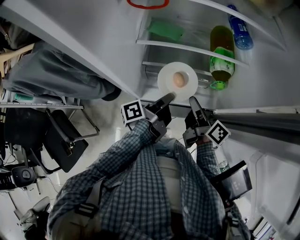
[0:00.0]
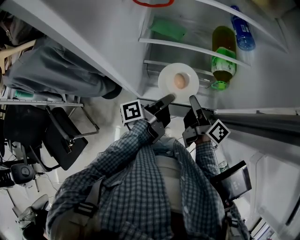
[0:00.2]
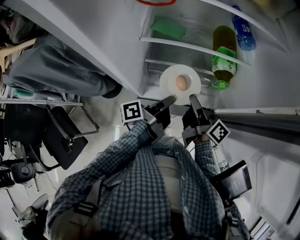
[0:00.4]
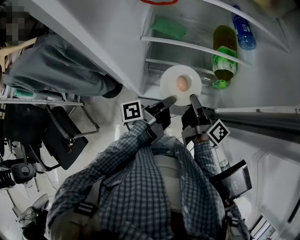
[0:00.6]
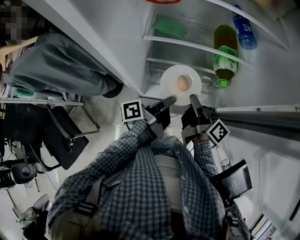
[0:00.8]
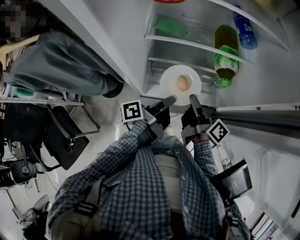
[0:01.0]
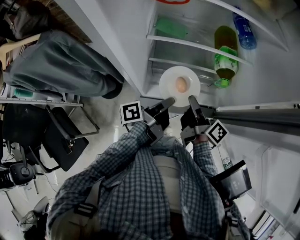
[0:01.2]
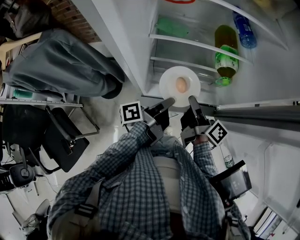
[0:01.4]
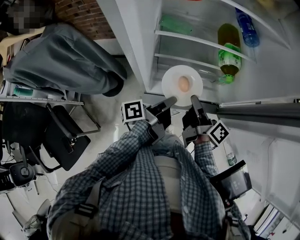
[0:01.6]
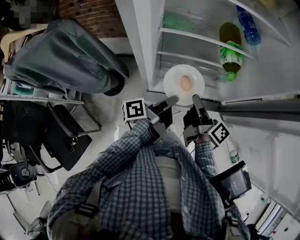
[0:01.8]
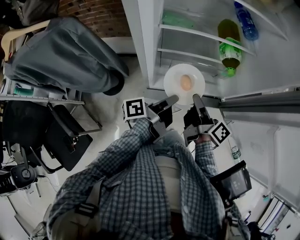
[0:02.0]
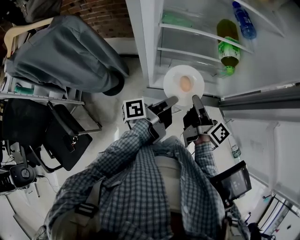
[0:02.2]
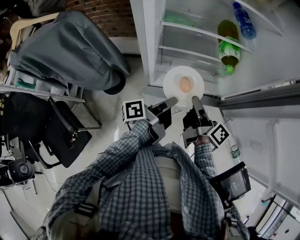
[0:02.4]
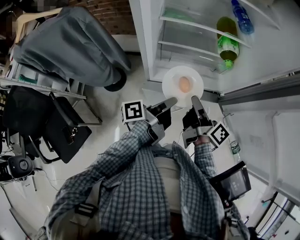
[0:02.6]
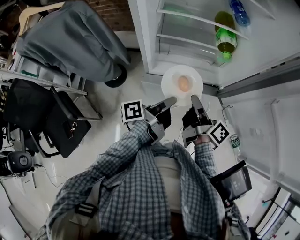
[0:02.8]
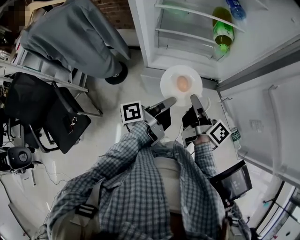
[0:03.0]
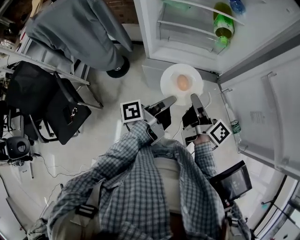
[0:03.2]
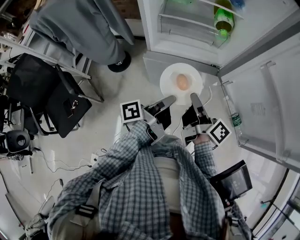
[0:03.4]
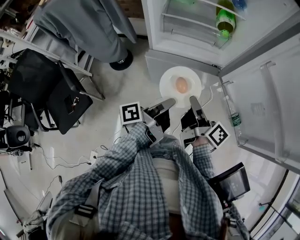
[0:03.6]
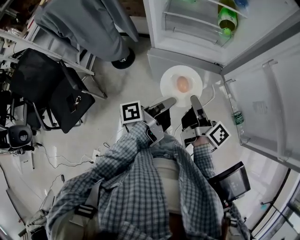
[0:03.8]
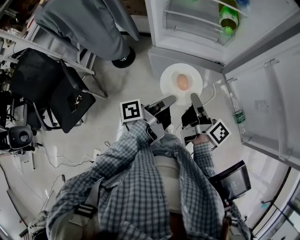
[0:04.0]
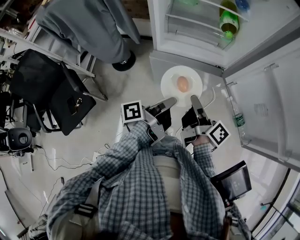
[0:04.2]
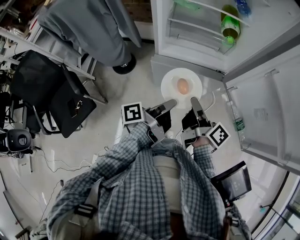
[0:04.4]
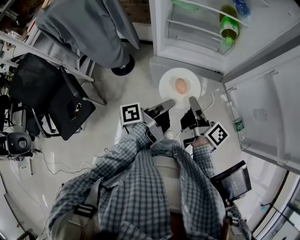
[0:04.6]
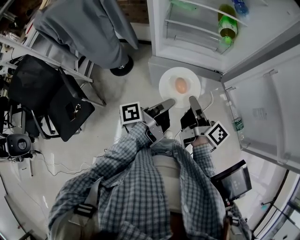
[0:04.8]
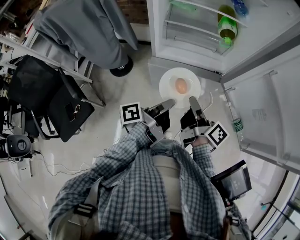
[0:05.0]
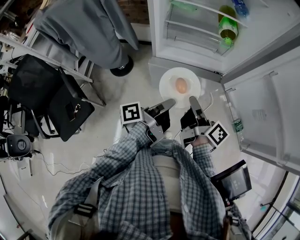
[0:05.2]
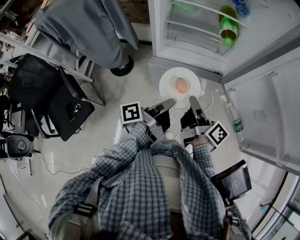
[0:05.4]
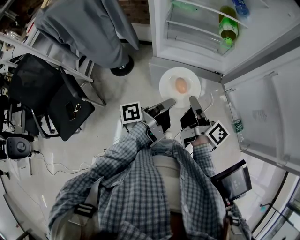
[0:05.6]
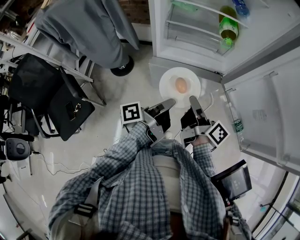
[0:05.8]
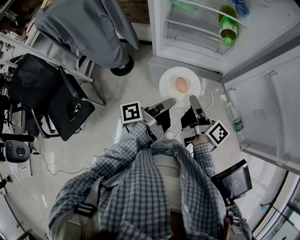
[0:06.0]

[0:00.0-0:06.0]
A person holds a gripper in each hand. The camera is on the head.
0:00.0 to 0:01.6: The right gripper moves some 5 cm.
0:01.6 to 0:03.0: The right gripper ends up roughly 15 cm from where it was.
0:03.0 to 0:04.4: The right gripper ends up approximately 10 cm from where it was.

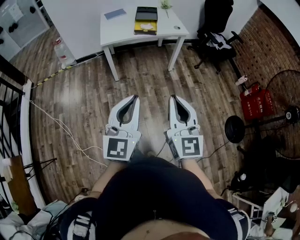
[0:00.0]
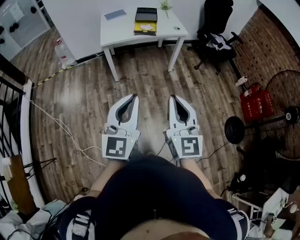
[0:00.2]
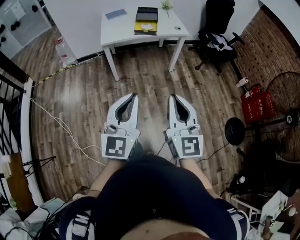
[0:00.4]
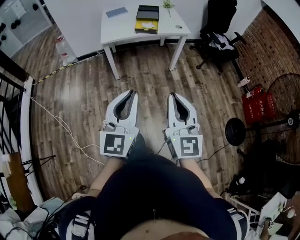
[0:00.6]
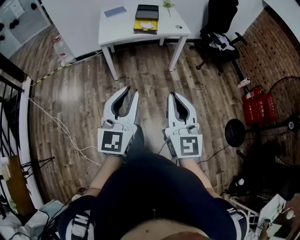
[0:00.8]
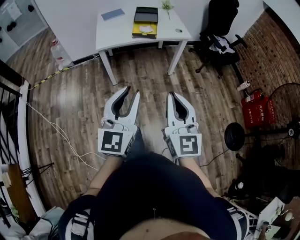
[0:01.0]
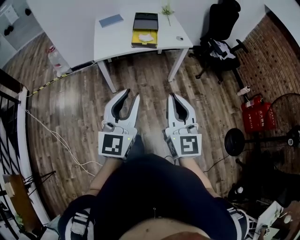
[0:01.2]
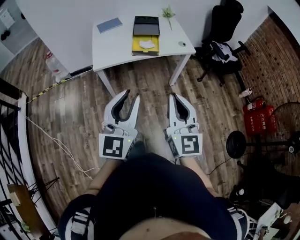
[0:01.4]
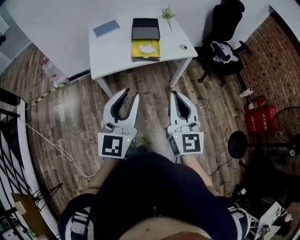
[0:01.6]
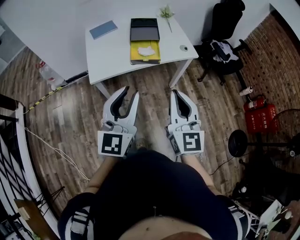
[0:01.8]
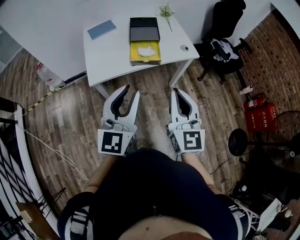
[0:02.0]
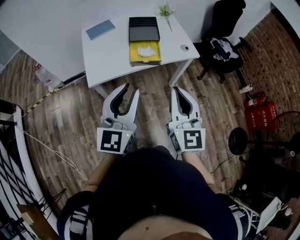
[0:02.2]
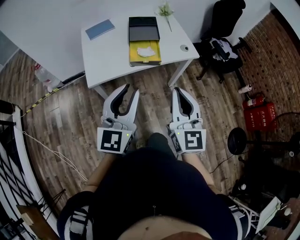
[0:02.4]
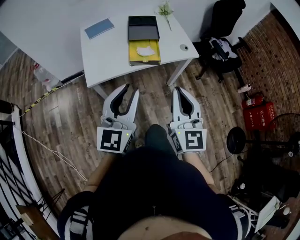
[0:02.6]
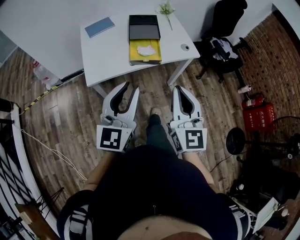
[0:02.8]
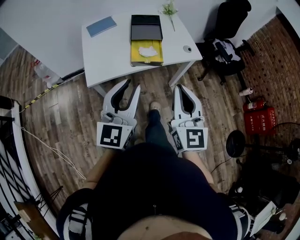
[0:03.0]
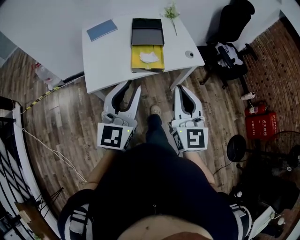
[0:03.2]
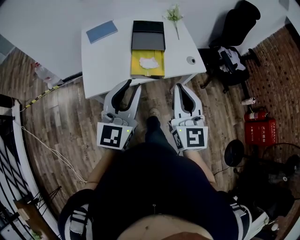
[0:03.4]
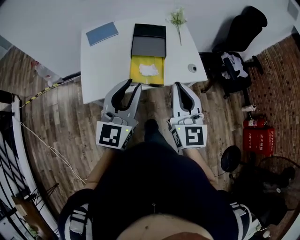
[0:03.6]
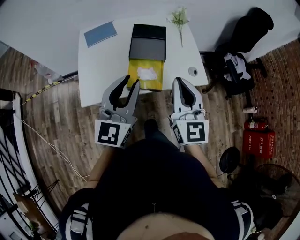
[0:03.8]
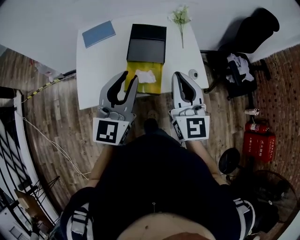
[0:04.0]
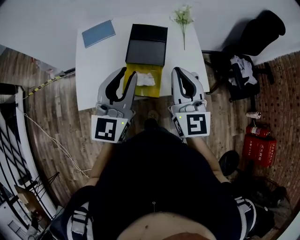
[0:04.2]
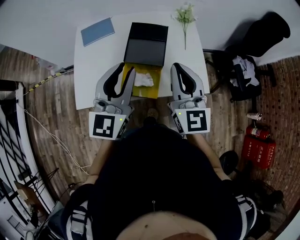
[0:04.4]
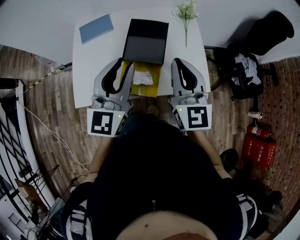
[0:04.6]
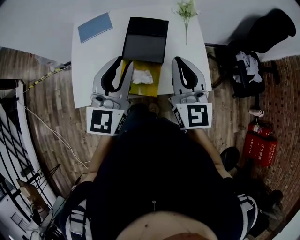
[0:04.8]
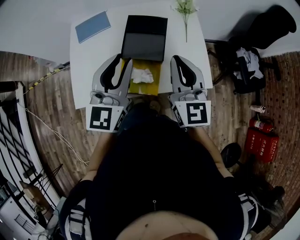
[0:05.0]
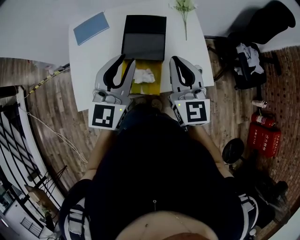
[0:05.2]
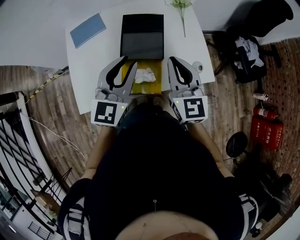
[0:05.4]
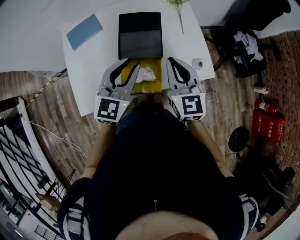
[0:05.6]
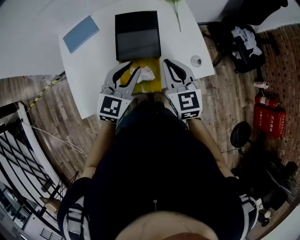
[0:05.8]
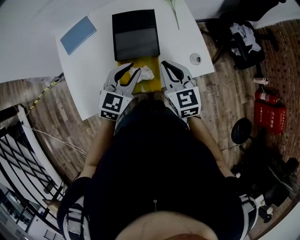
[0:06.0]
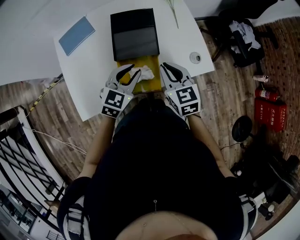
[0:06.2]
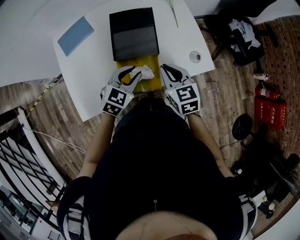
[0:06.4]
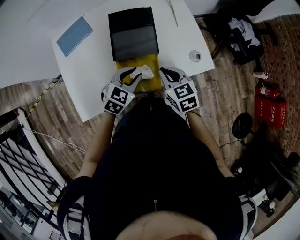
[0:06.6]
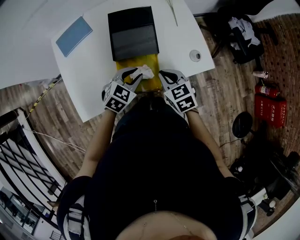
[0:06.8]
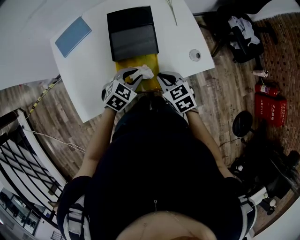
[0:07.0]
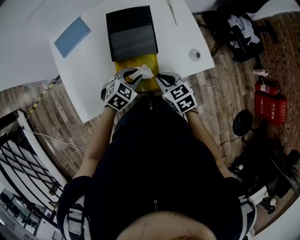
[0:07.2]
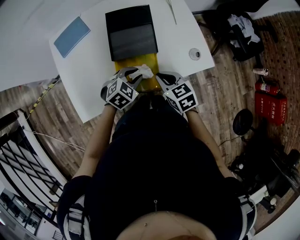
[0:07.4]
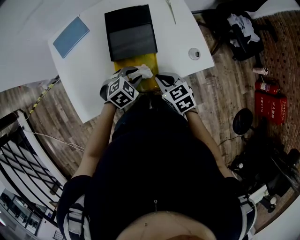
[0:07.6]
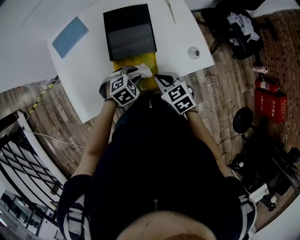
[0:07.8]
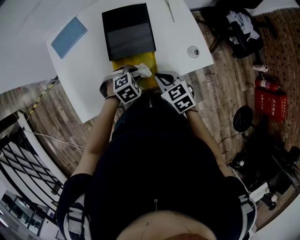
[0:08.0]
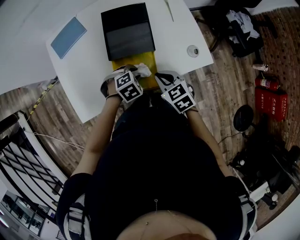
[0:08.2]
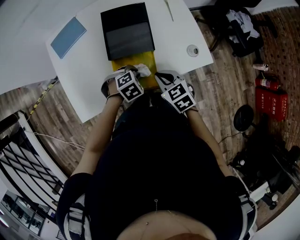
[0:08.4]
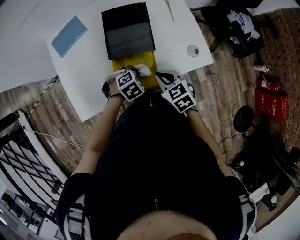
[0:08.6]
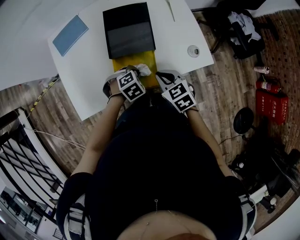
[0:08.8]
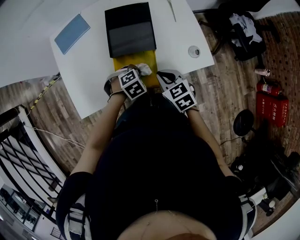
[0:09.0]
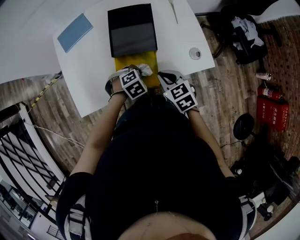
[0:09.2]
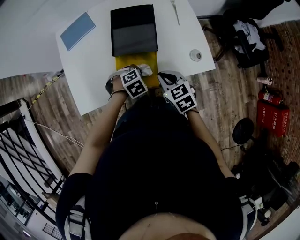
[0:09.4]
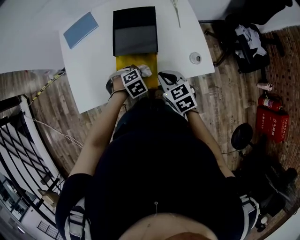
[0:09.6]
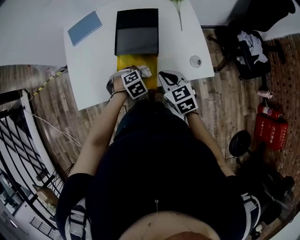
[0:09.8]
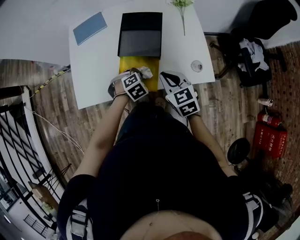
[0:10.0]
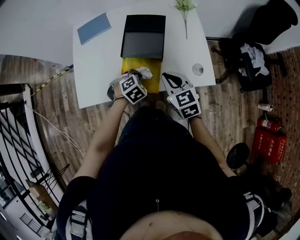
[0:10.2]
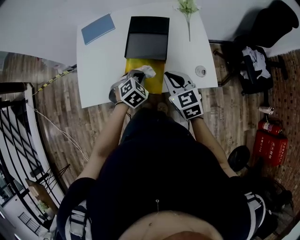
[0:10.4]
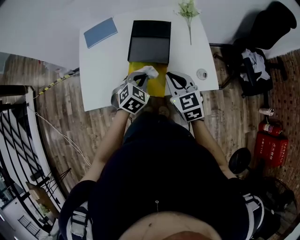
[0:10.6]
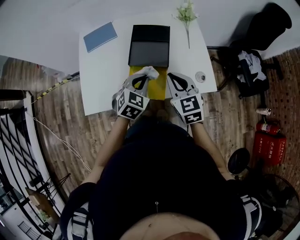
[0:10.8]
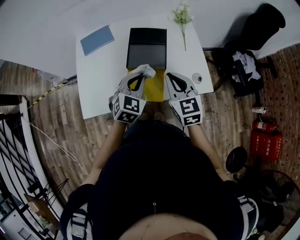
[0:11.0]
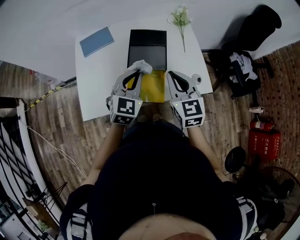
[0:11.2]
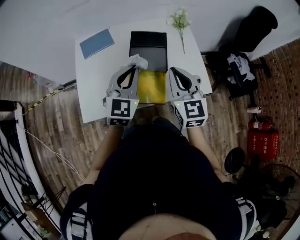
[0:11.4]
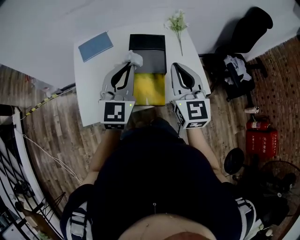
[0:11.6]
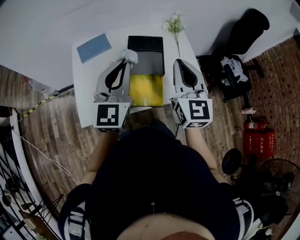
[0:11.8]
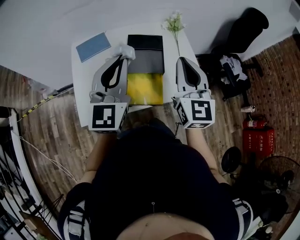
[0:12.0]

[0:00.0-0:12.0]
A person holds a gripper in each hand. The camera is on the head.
0:00.0 to 0:01.6: Both grippers move forward, approximately 35 cm. The left gripper opens its fingers.
0:01.6 to 0:03.0: Both grippers move forward, approximately 10 cm.
0:03.0 to 0:04.4: The two grippers go approximately 30 cm forward.
0:04.4 to 0:06.0: The two grippers go some 15 cm downward. The left gripper rotates roughly 40 degrees. The right gripper rotates some 20 degrees.
0:06.0 to 0:07.6: The grippers both shift downward by about 15 cm. The left gripper angles its fingers downward, by some 30 degrees. Meanwhile the right gripper rotates approximately 20 degrees.
0:07.6 to 0:09.0: The left gripper closes up.
0:09.0 to 0:10.4: Both grippers move upward, about 5 cm. The left gripper turns by about 30 degrees.
0:10.4 to 0:12.0: The left gripper moves upward, roughly 35 cm, and tilts its fingers some 60 degrees upward; the right gripper travels upward by roughly 20 cm, and changes its angle by some 40 degrees.

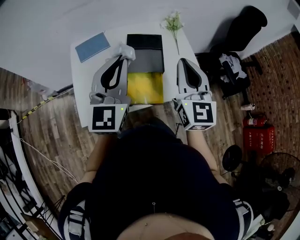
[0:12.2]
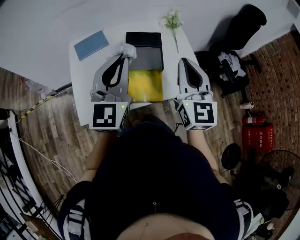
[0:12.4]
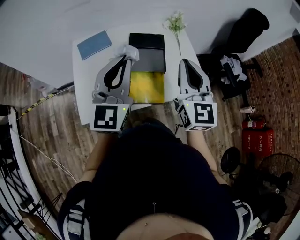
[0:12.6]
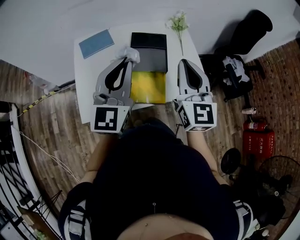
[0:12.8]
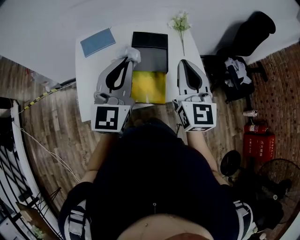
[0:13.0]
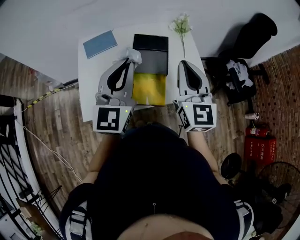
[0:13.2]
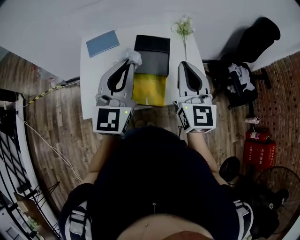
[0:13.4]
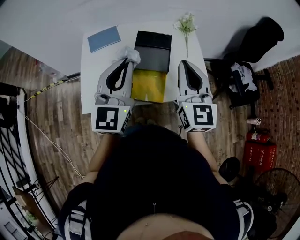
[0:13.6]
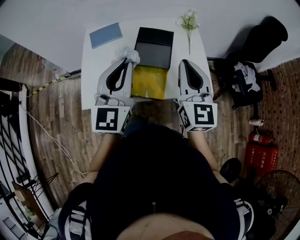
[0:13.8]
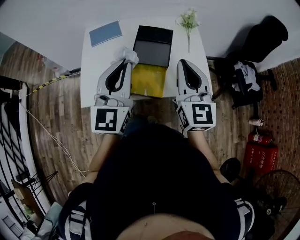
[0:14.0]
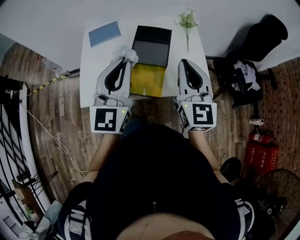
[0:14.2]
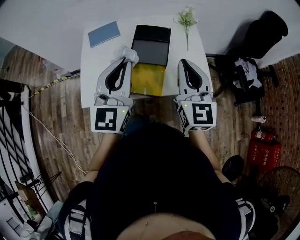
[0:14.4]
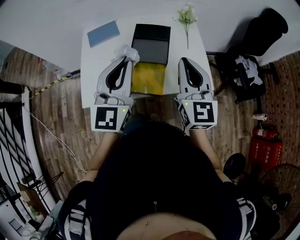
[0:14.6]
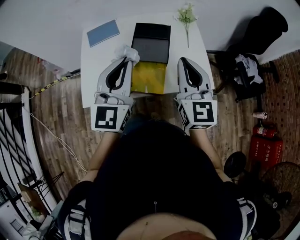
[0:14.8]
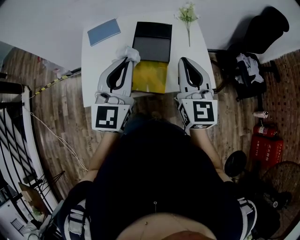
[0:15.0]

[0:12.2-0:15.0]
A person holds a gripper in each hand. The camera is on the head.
0:12.2 to 0:13.6: The grippers move only a little.
0:13.6 to 0:15.0: The grippers stay close to where they were, moving slightly.

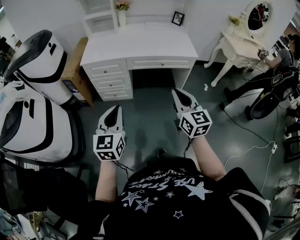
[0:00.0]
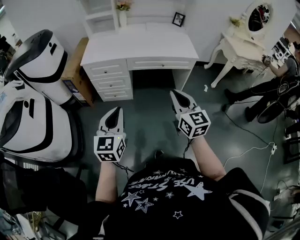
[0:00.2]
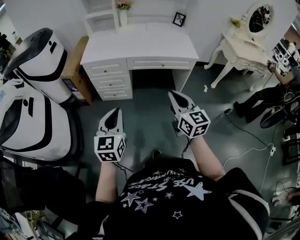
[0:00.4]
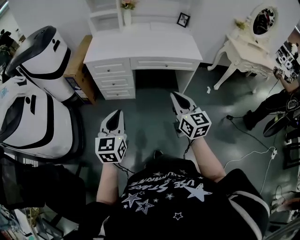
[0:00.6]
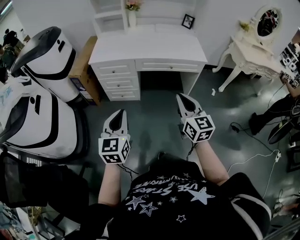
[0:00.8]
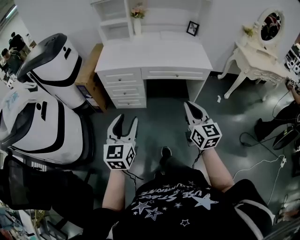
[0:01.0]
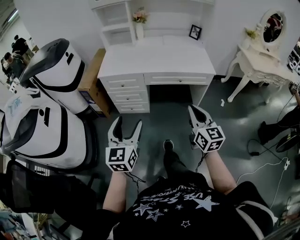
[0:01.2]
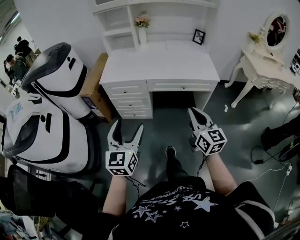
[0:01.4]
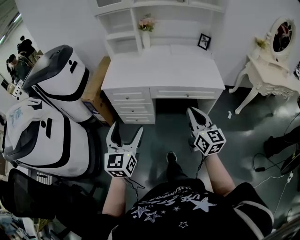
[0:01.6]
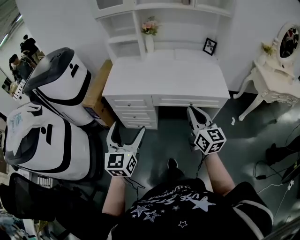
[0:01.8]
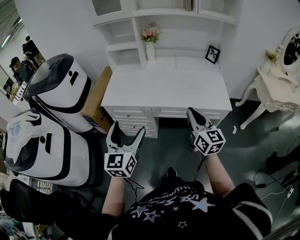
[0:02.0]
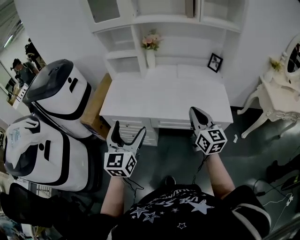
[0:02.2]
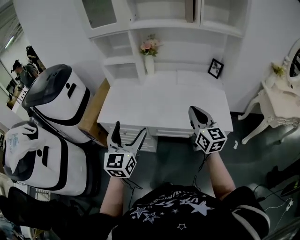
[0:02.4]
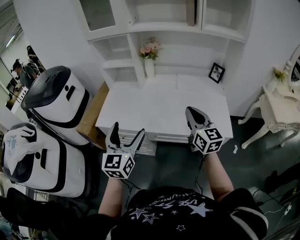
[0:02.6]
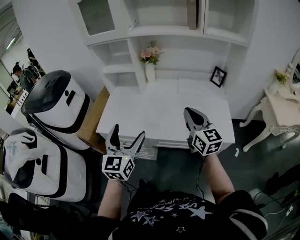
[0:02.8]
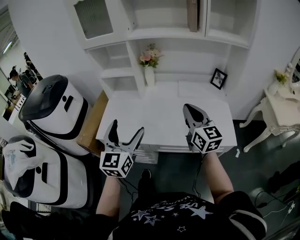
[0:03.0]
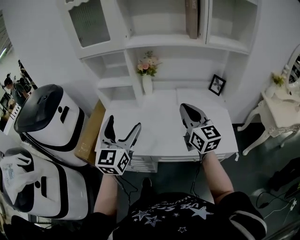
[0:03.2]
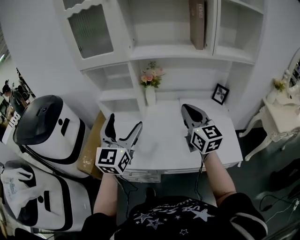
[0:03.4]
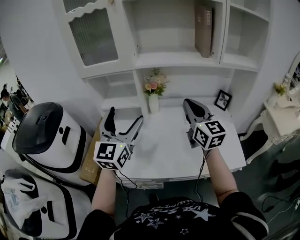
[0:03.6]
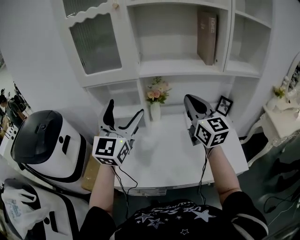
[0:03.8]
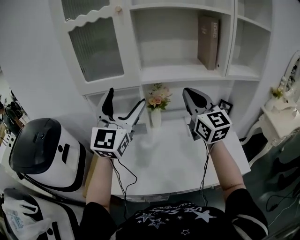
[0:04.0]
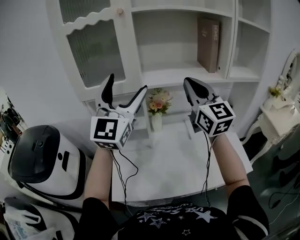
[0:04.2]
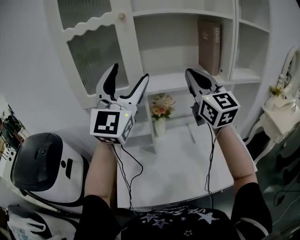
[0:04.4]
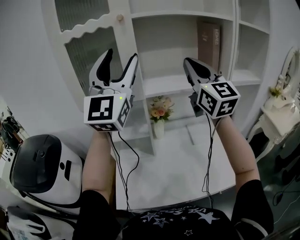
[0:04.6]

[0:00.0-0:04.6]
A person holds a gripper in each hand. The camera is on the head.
0:00.0 to 0:01.6: Both grippers travel together forward, about 15 cm. The left gripper opens.
0:01.6 to 0:03.0: The two grippers go about 35 cm forward.
0:03.0 to 0:04.6: The right gripper shifts about 40 cm upward, forward and to the left, and turns by roughly 30 degrees. Meanwhile the left gripper shifts some 50 cm upward and forward, tilts its fingers roughly 30 degrees upward, and closes.
